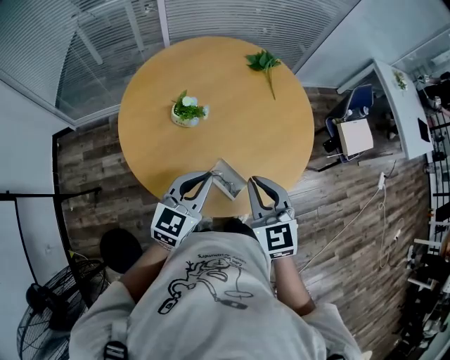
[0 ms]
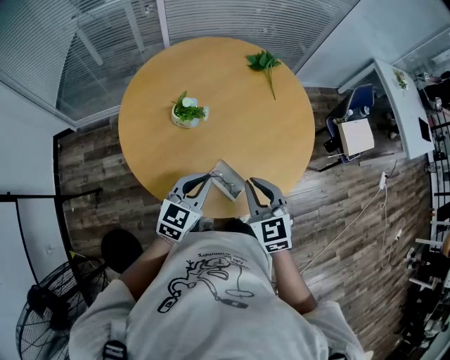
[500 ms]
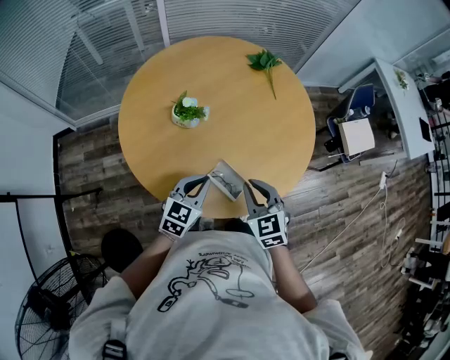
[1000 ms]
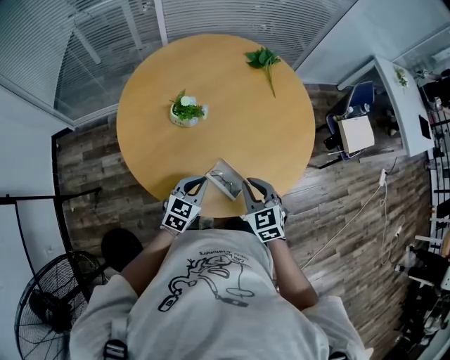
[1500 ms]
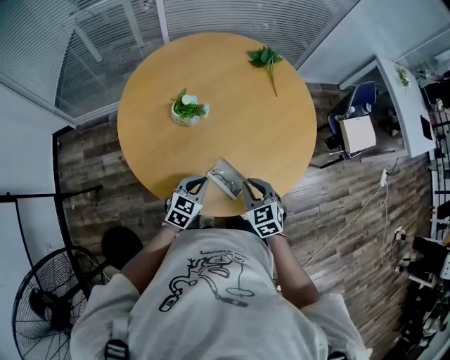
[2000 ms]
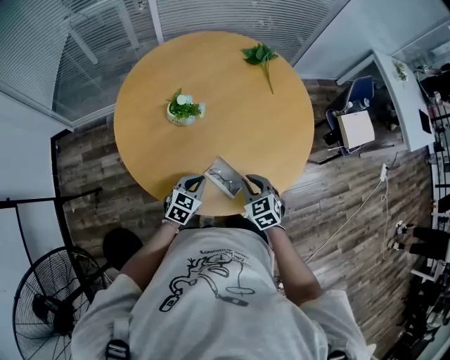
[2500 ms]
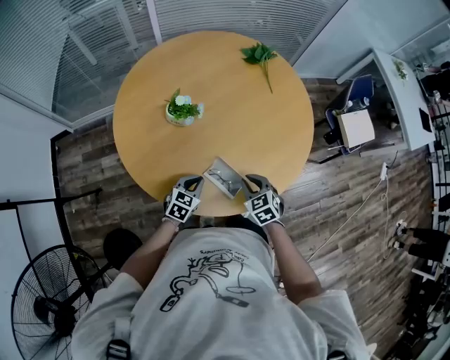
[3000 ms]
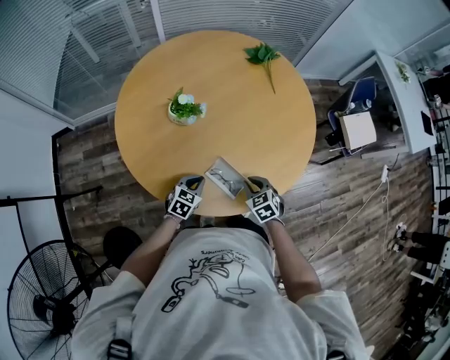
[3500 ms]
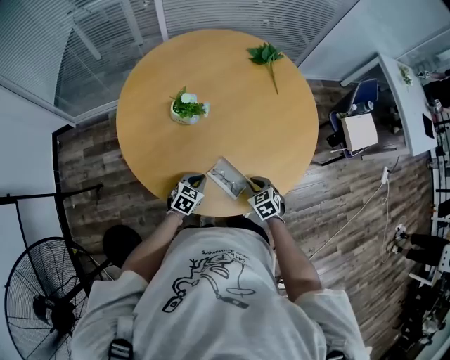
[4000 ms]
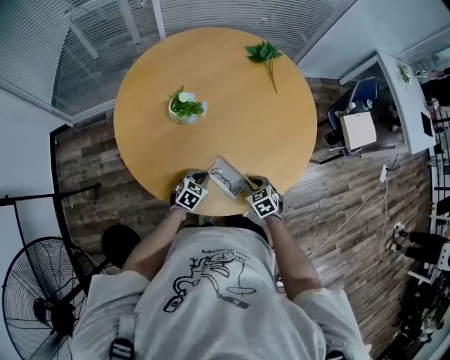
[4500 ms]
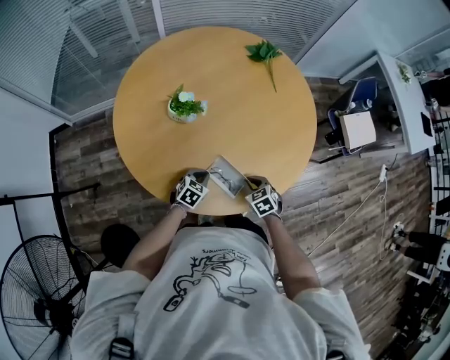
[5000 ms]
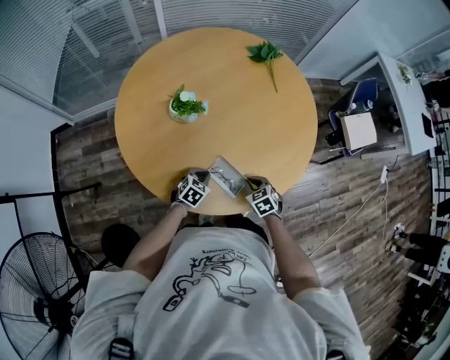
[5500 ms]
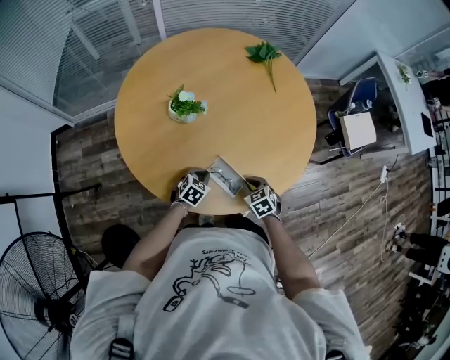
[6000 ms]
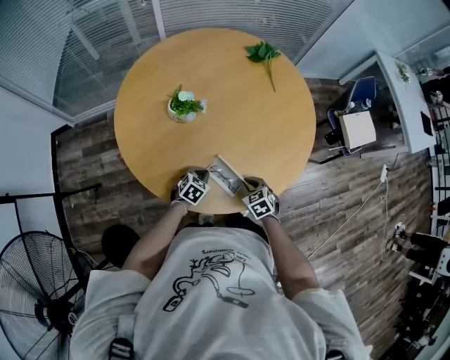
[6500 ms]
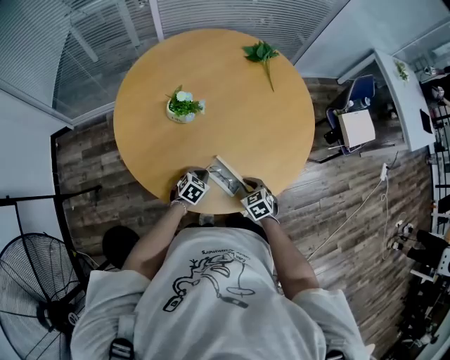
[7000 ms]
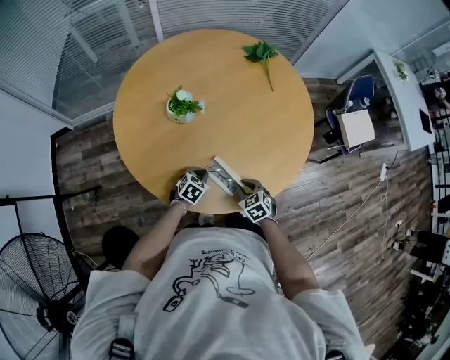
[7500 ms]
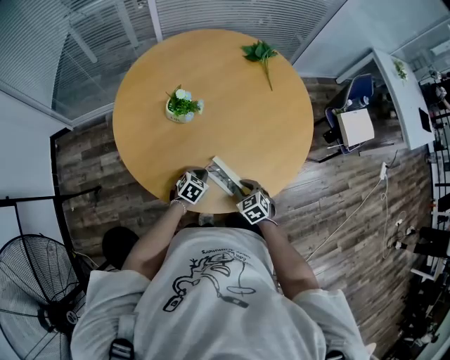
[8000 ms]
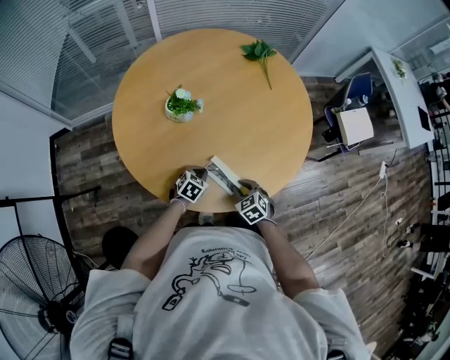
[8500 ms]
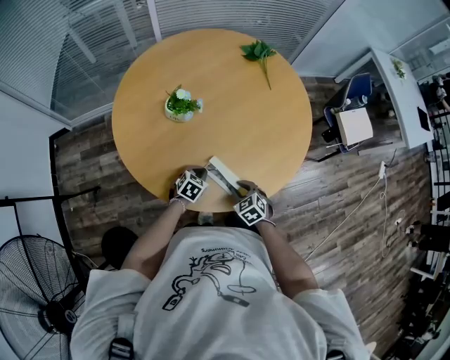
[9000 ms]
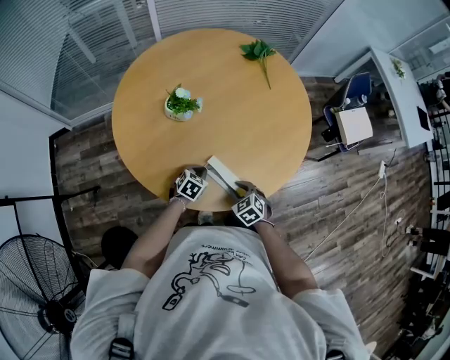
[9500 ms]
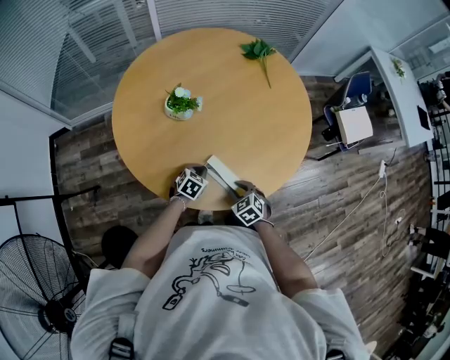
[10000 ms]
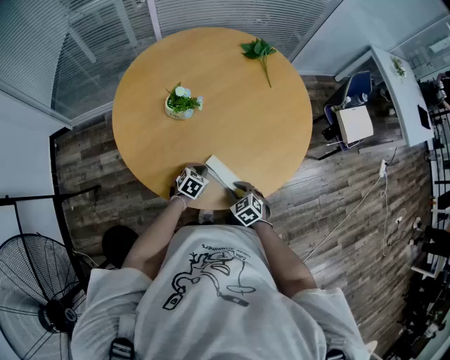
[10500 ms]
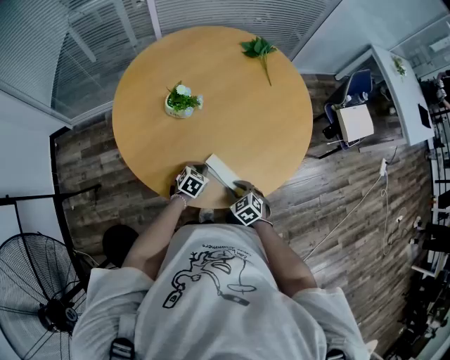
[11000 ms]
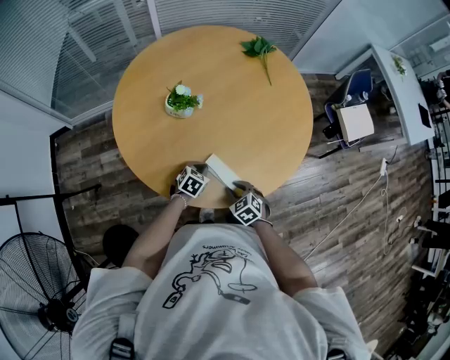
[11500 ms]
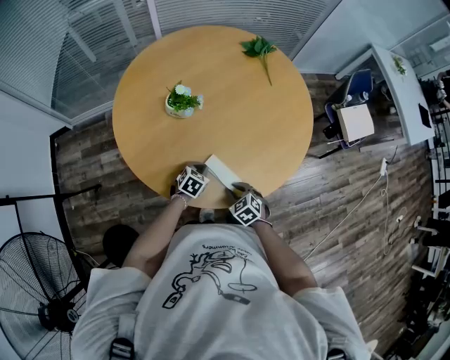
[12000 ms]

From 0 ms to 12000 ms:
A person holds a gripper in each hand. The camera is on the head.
From 0 ms to 2000 ms: Both grippers move downward, about 20 cm. The left gripper turns by roughly 20 degrees.
From 2000 ms to 4000 ms: The two grippers go approximately 10 cm downward.
From 4000 ms to 8000 ms: The grippers move only a little.
From 8000 ms to 12000 ms: The grippers move only a little.

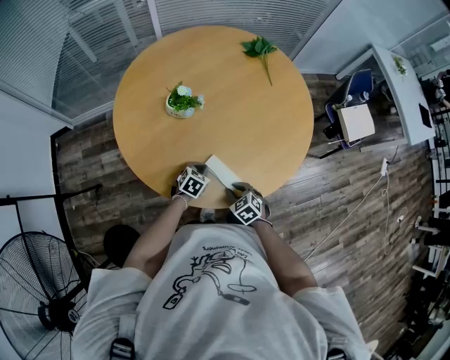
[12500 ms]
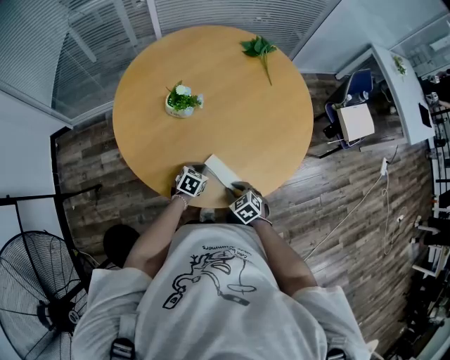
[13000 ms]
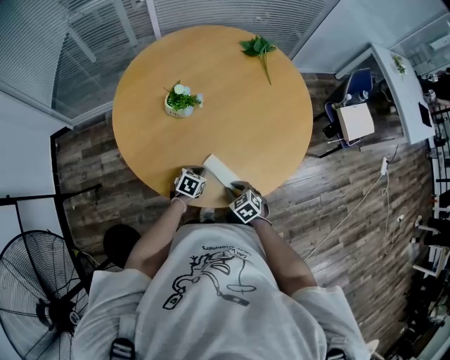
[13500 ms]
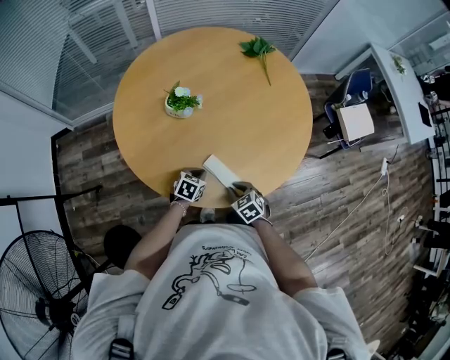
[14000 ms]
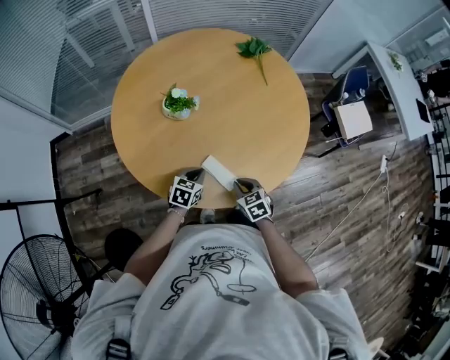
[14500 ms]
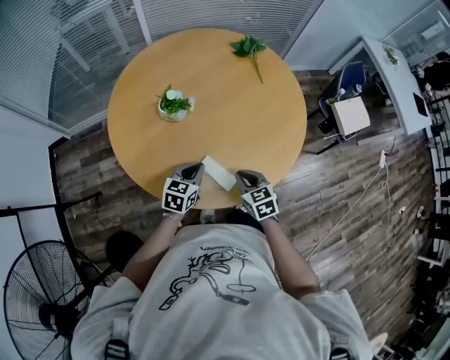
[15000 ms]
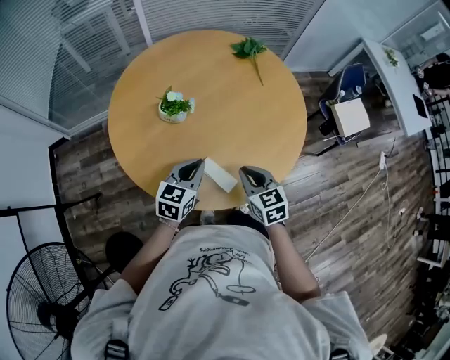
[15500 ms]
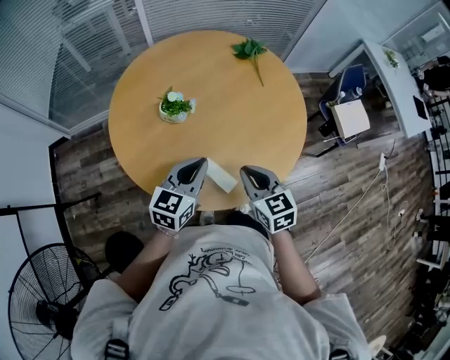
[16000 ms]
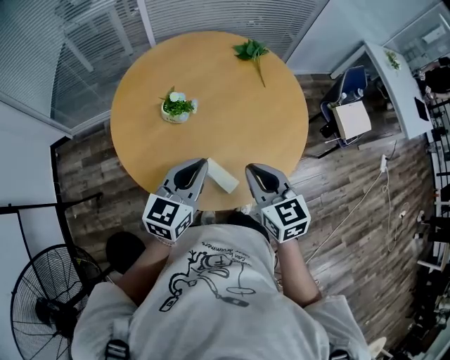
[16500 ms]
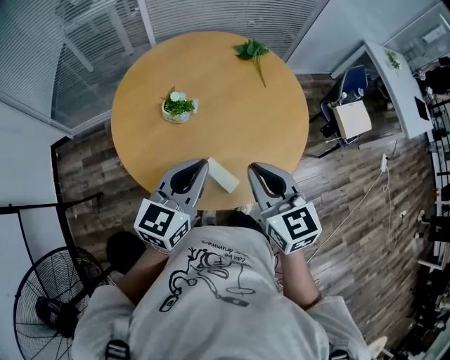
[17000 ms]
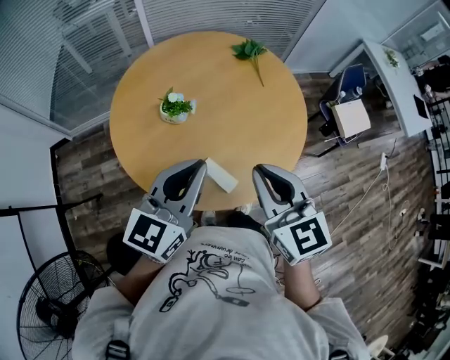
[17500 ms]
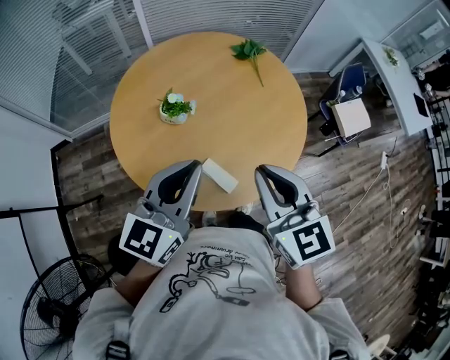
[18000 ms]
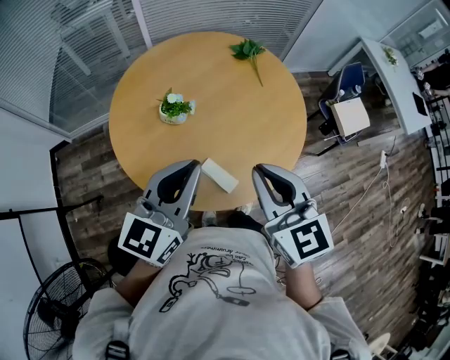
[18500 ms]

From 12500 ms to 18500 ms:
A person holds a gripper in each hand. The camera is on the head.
From 12500 ms to 14500 ms: The left gripper heads upward, covering about 5 cm; the right gripper ends up roughly 5 cm from where it was.
From 14500 ms to 16500 ms: The grippers both shift upward by approximately 25 cm. The right gripper changes its angle by approximately 30 degrees. The left gripper tilts its fingers approximately 30 degrees upward.
From 16500 ms to 18500 ms: Both grippers travel together upward, about 10 cm.

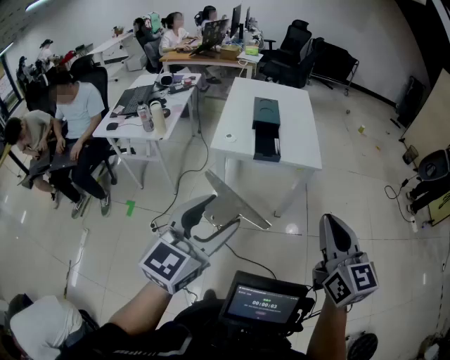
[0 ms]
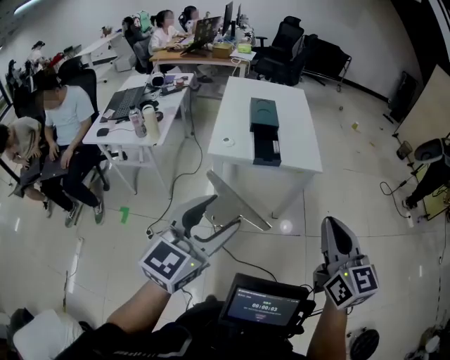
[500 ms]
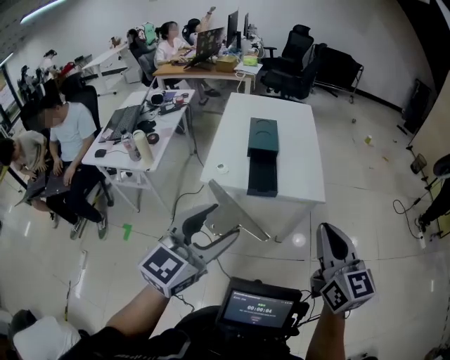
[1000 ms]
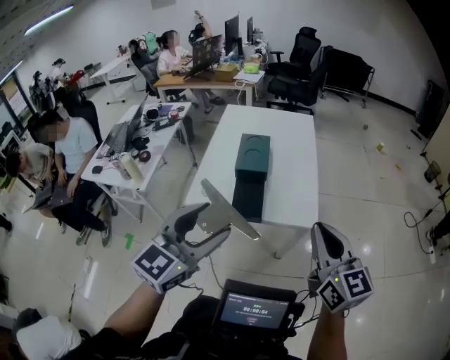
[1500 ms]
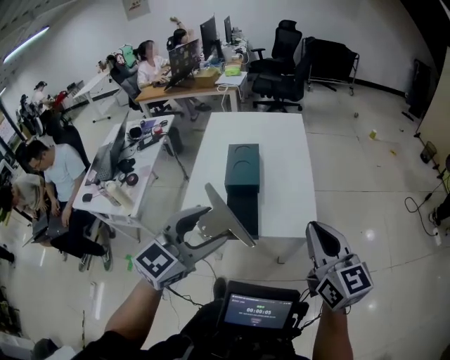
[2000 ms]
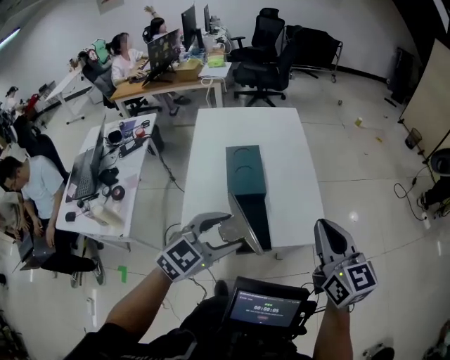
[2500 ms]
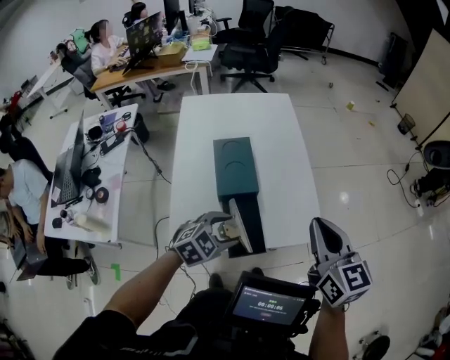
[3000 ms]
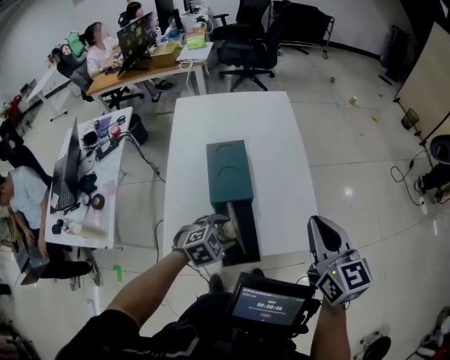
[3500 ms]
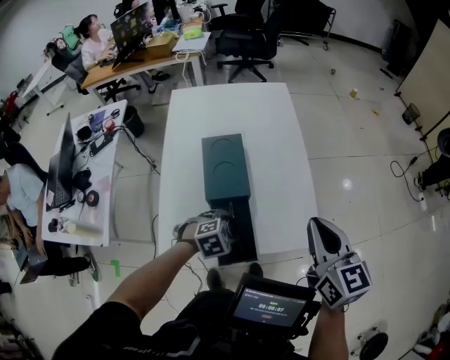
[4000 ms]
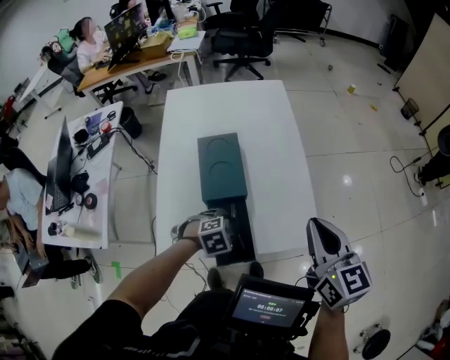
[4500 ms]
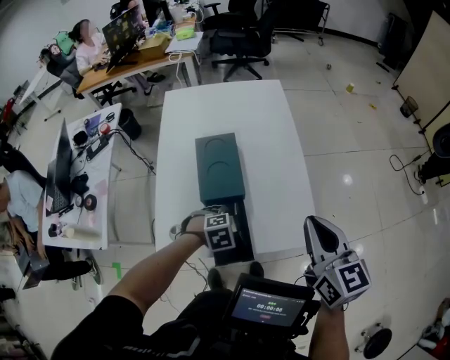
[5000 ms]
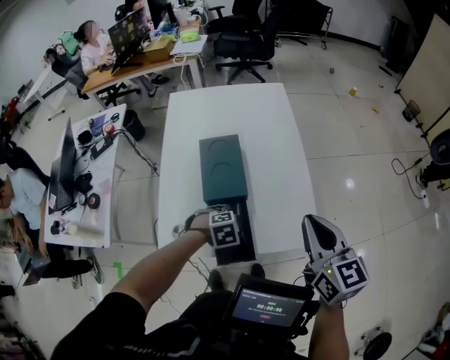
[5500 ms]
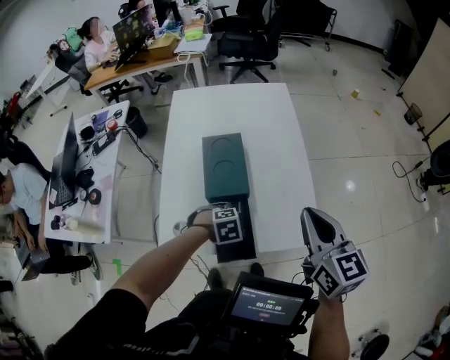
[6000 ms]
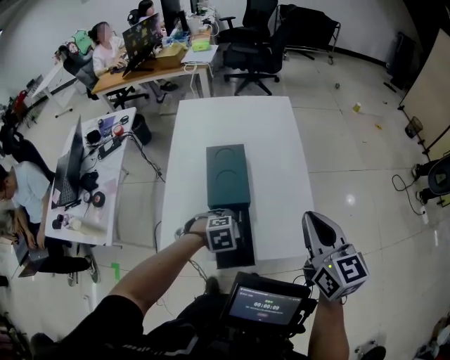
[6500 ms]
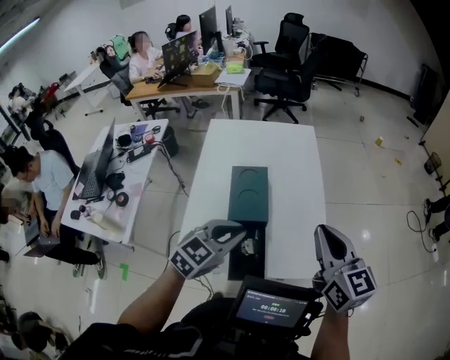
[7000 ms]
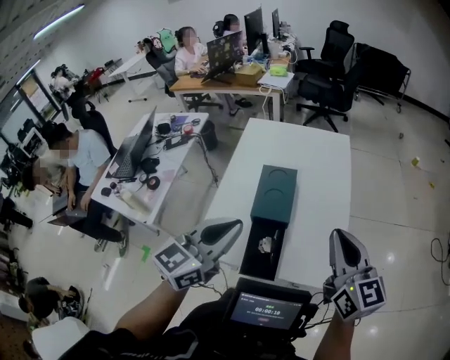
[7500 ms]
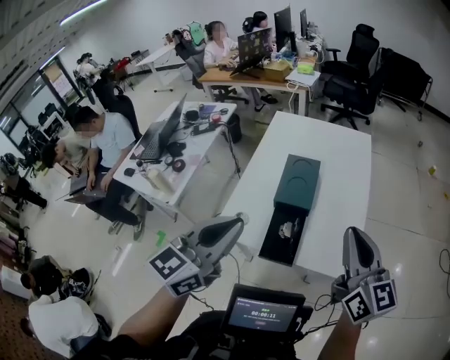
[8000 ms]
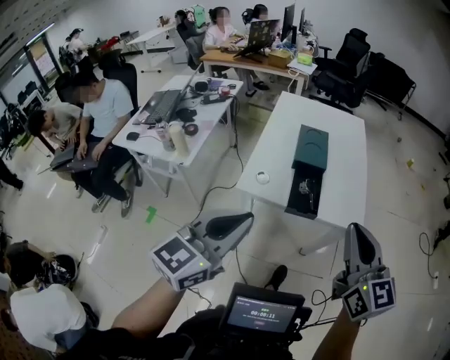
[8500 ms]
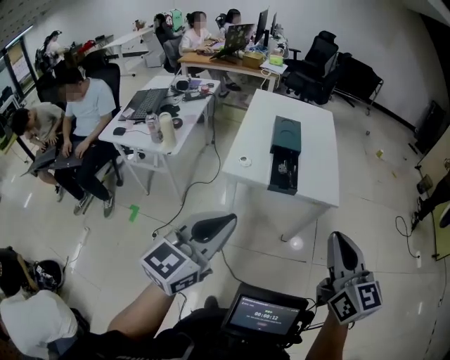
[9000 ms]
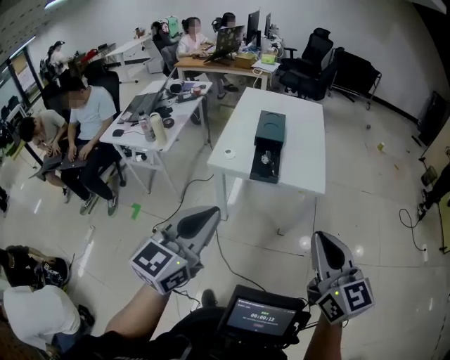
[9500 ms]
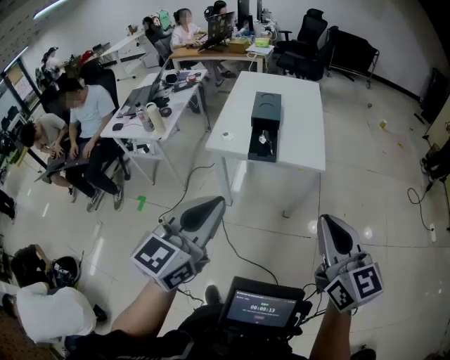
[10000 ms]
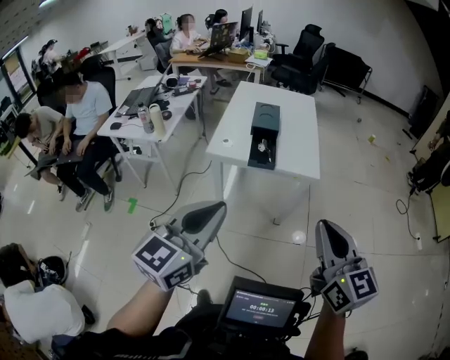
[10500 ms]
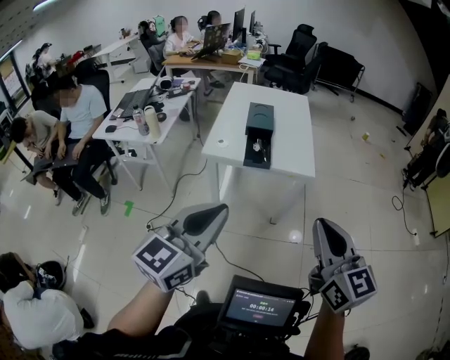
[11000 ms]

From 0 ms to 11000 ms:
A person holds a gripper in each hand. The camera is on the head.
From 0 ms to 2000 ms: Both grippers are carried forward, about 60 cm.
From 2000 ms to 3500 ms: The left gripper travels downward, forward and to the left by roughly 40 cm, and points its fingers about 40 degrees further downward. The right gripper moves forward and to the left, approximately 25 cm.
From 3500 ms to 5500 ms: The left gripper heads downward, covering some 5 cm, and changes its angle by approximately 20 degrees.
From 5500 ms to 7500 ms: The left gripper heads upward, covering approximately 35 cm, tilts its fingers about 70 degrees upward, and closes; the right gripper moves upward, about 10 cm.
From 7500 ms to 9000 ms: The two grippers travel together, backward, some 60 cm.
From 9000 ms to 11000 ms: The left gripper shifts some 20 cm to the right and backward. Meanwhile the right gripper heads backward and to the right, covering approximately 20 cm.
